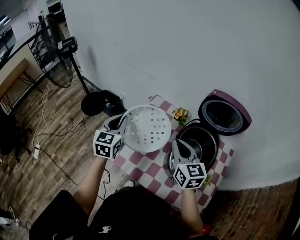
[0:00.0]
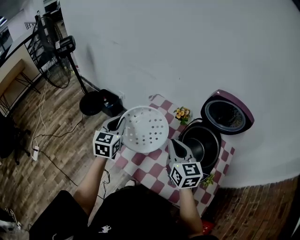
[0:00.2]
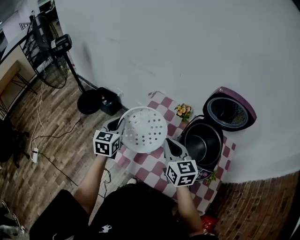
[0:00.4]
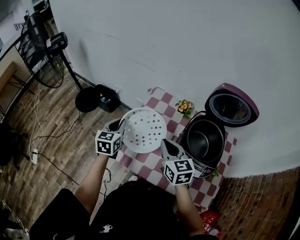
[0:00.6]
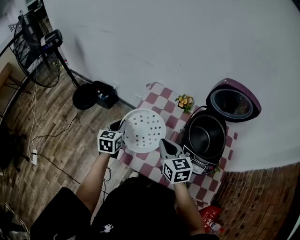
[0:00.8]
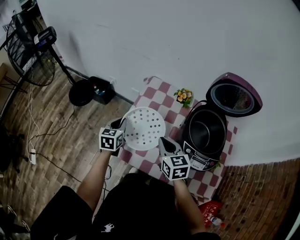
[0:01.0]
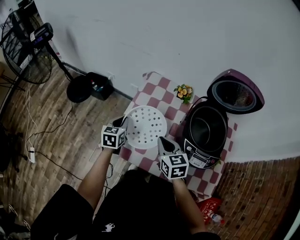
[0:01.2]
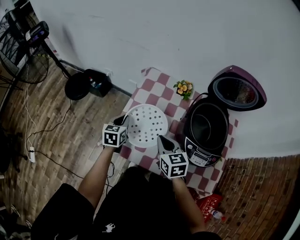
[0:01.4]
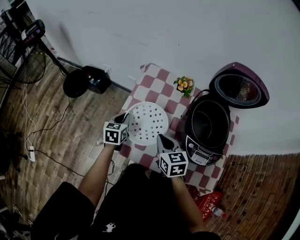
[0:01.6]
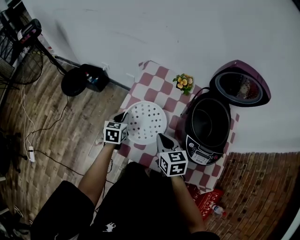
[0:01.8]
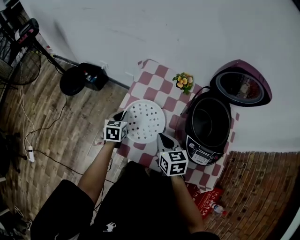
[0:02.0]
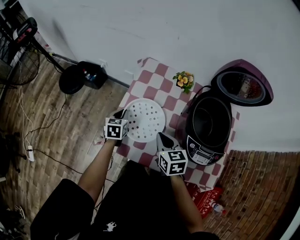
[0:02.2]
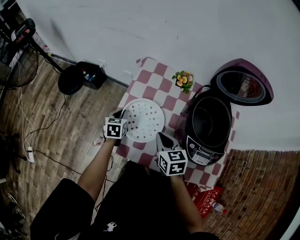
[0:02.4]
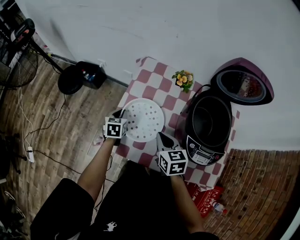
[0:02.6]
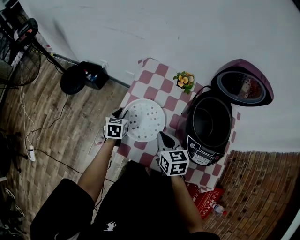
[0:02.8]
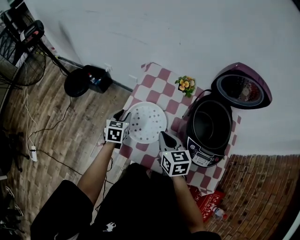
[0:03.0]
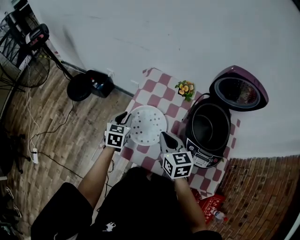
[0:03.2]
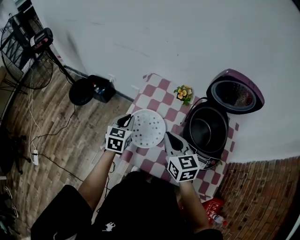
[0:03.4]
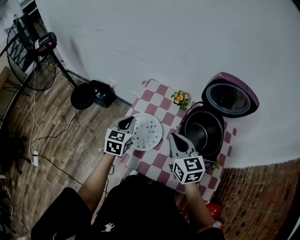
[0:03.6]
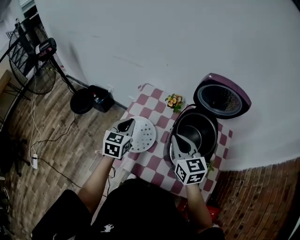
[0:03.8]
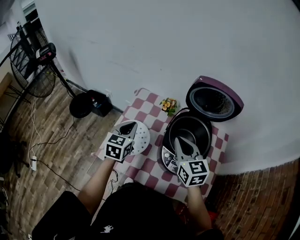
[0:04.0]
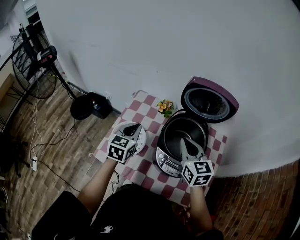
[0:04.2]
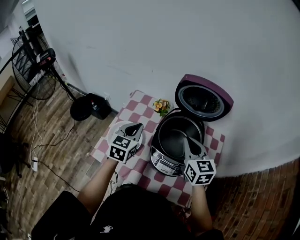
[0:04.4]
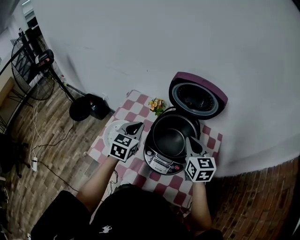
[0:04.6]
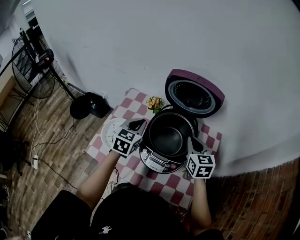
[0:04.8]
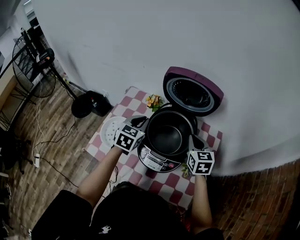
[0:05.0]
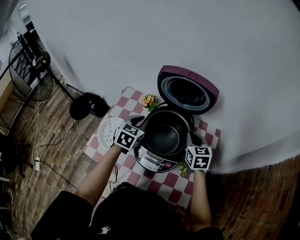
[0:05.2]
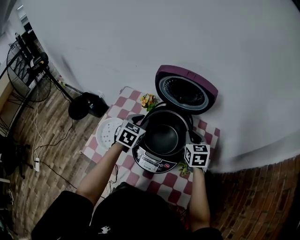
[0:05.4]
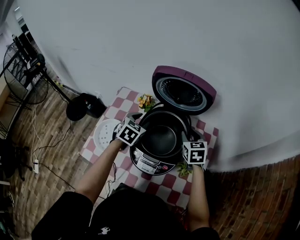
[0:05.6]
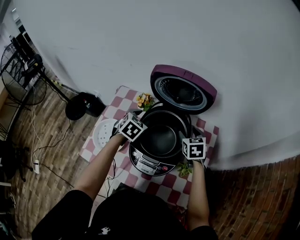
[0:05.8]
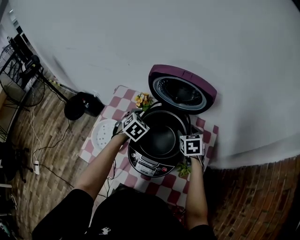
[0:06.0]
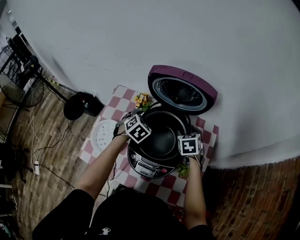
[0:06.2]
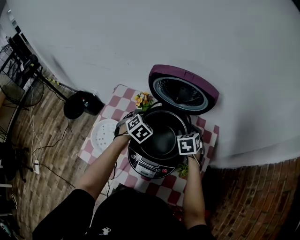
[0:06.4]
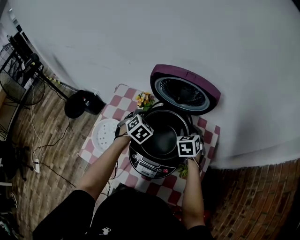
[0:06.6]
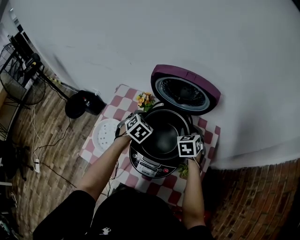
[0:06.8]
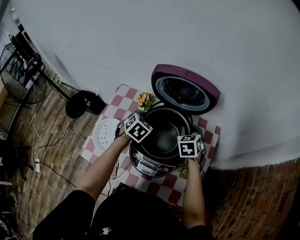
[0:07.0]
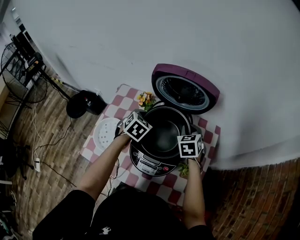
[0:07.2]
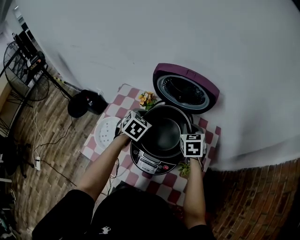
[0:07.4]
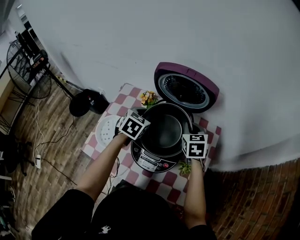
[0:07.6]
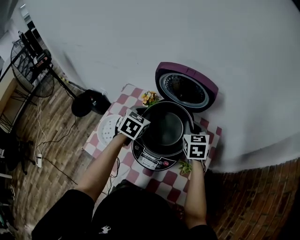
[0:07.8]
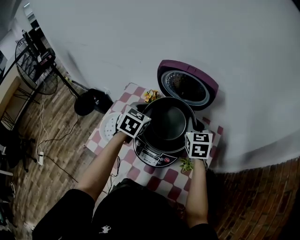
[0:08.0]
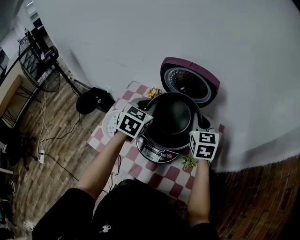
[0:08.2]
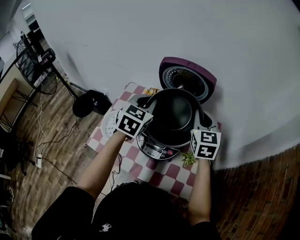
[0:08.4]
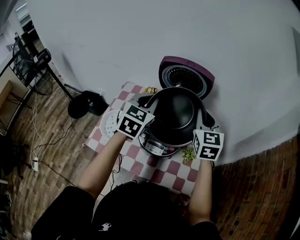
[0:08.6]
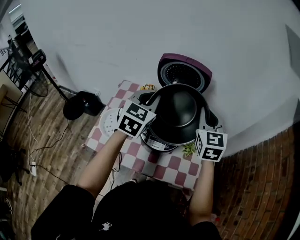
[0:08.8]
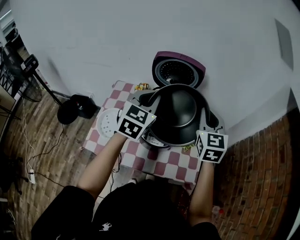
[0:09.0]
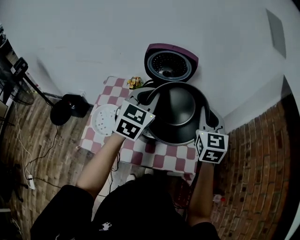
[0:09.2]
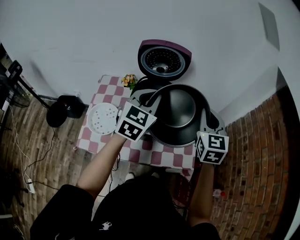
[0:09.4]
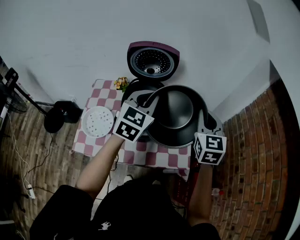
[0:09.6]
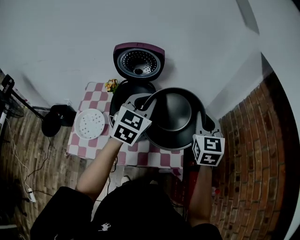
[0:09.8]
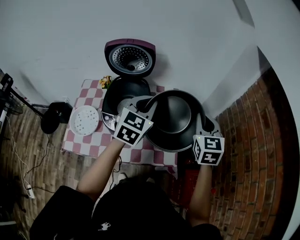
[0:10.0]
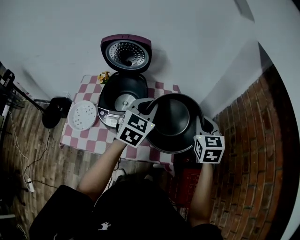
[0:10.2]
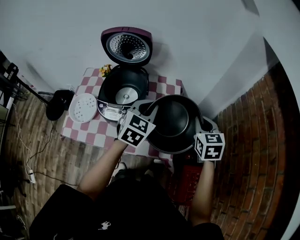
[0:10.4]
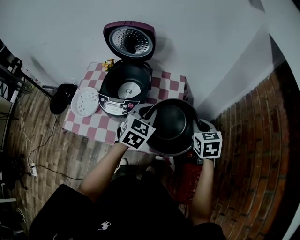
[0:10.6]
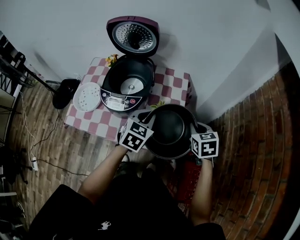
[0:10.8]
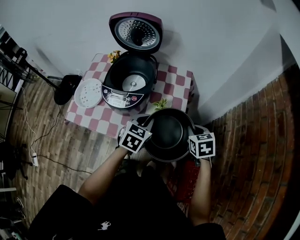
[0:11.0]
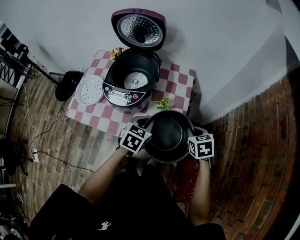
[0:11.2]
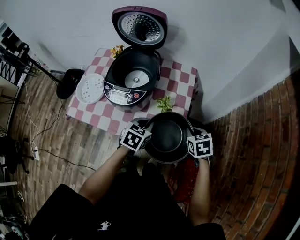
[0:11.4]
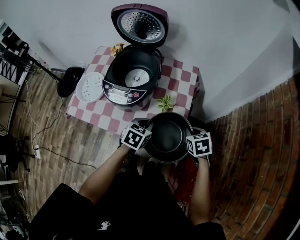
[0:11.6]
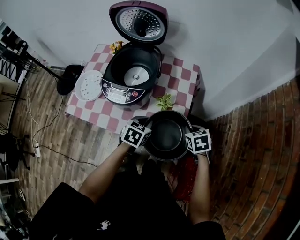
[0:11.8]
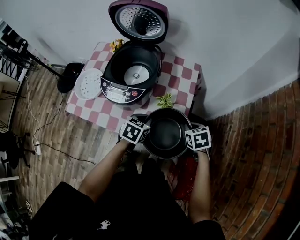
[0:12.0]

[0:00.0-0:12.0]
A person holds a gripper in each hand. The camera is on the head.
0:00.0 to 0:01.6: The left gripper shifts some 25 cm downward, and changes its angle by about 30 degrees. The right gripper shifts about 20 cm downward and to the left, and turns by some 20 degrees.
0:01.6 to 0:03.0: The left gripper opens up.
0:03.0 to 0:04.4: Both grippers travel together to the right and upward, some 30 cm. The left gripper swivels approximately 20 degrees, and closes up.
0:04.4 to 0:06.0: The left gripper moves to the right, downward and forward, approximately 20 cm, swivels approximately 40 degrees, and opens up. The right gripper shifts approximately 20 cm downward, to the right and forward, turns by about 30 degrees, and opens up.
0:06.0 to 0:07.6: The two grippers go roughly 5 cm upward. The right gripper closes its fingers, while the left gripper closes up.
0:07.6 to 0:09.0: Both grippers travel together upward and backward, approximately 25 cm. The right gripper changes its angle by some 30 degrees. Meanwhile the left gripper turns by approximately 30 degrees.
0:09.0 to 0:10.4: The two grippers go approximately 25 cm to the right and downward. The right gripper turns by roughly 20 degrees.
0:10.4 to 0:12.0: Both grippers move downward, about 20 cm. The right gripper rotates about 30 degrees. Meanwhile the left gripper turns by approximately 40 degrees.

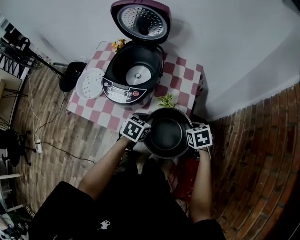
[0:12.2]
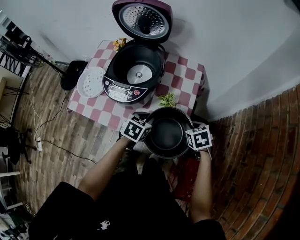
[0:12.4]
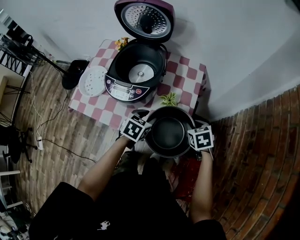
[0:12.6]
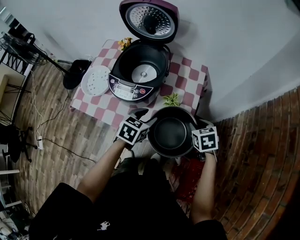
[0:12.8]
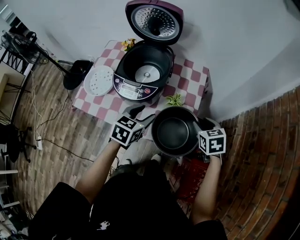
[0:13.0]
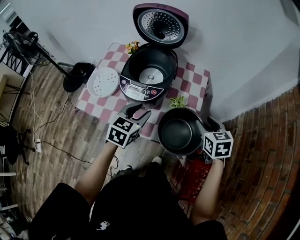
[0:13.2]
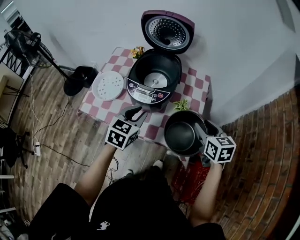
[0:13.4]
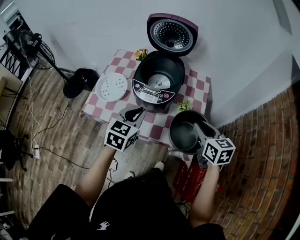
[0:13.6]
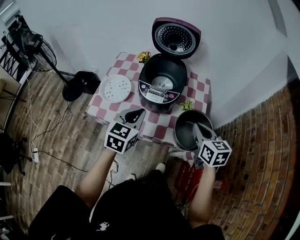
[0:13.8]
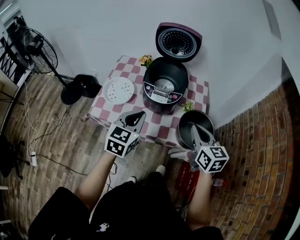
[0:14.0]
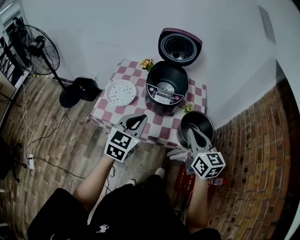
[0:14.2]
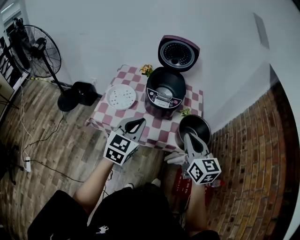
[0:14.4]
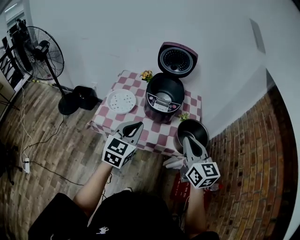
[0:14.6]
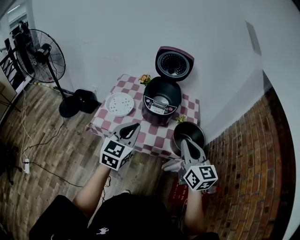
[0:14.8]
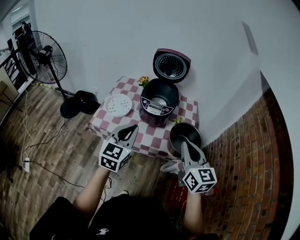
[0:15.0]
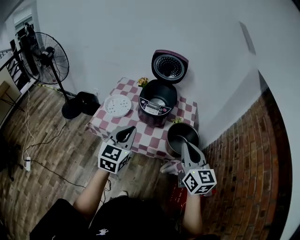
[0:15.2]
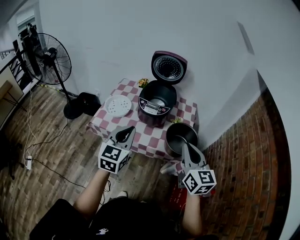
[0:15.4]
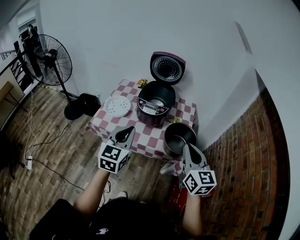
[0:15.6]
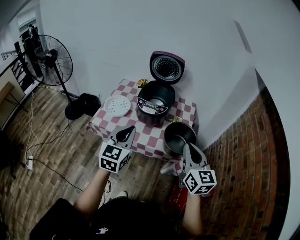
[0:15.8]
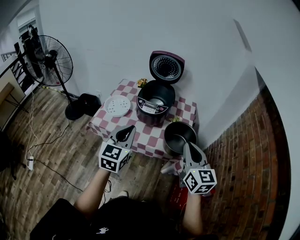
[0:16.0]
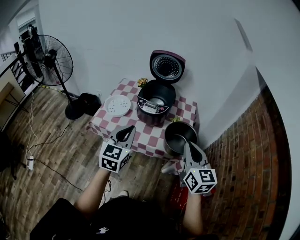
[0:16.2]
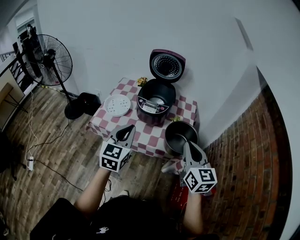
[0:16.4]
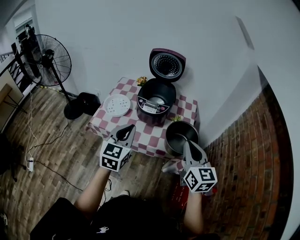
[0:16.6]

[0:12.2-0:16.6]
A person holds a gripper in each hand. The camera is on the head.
0:12.2 to 0:13.6: The grippers both shift upward and to the left by about 20 cm. The right gripper points its fingers roughly 30 degrees further upward, and opens up. The left gripper changes its angle by about 30 degrees, and opens, then closes once more.
0:13.6 to 0:15.2: Both grippers move backward and upward, roughly 20 cm. The right gripper rotates some 30 degrees, and closes.
0:15.2 to 0:16.6: The grippers move only a little.

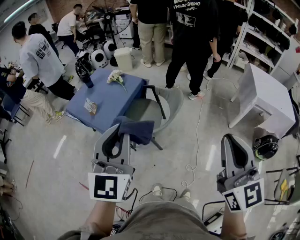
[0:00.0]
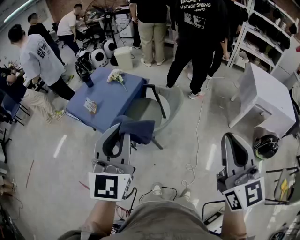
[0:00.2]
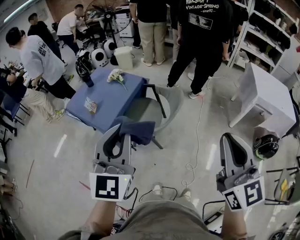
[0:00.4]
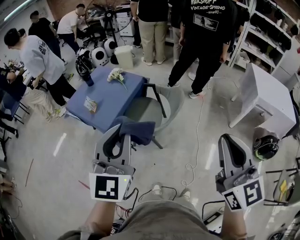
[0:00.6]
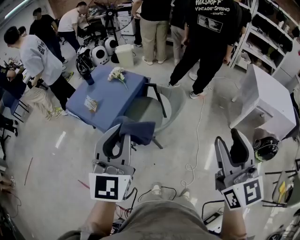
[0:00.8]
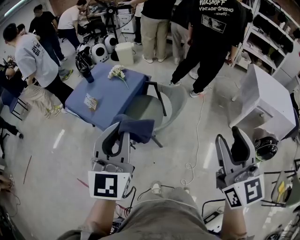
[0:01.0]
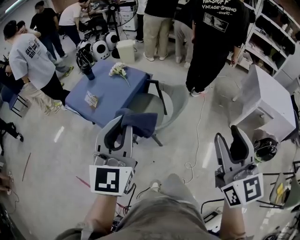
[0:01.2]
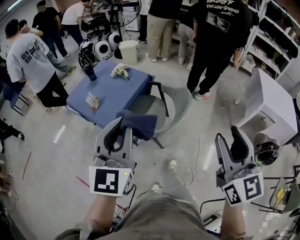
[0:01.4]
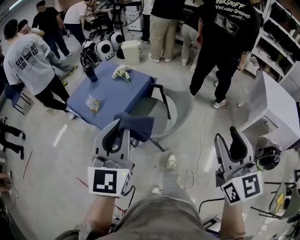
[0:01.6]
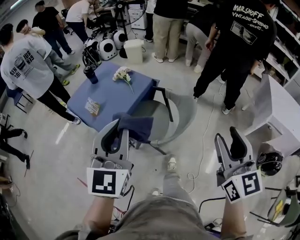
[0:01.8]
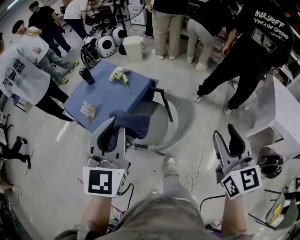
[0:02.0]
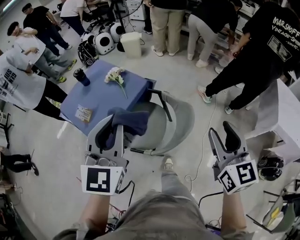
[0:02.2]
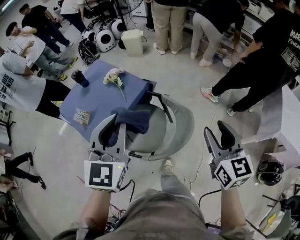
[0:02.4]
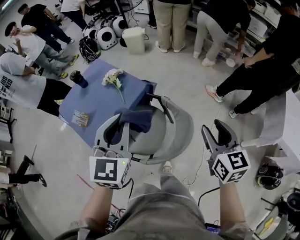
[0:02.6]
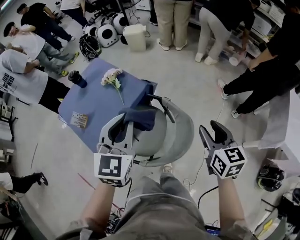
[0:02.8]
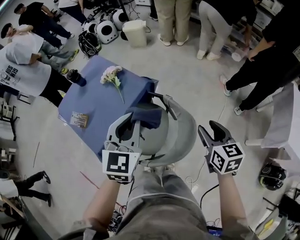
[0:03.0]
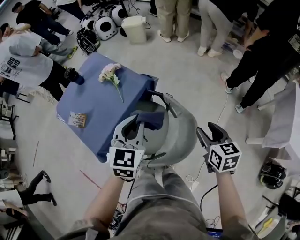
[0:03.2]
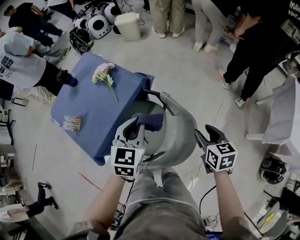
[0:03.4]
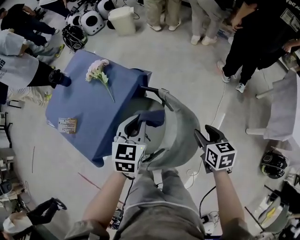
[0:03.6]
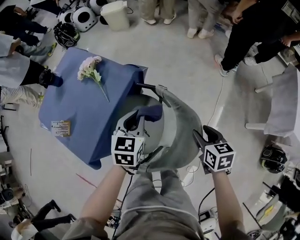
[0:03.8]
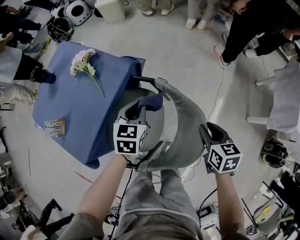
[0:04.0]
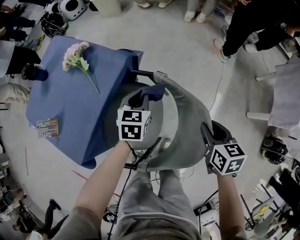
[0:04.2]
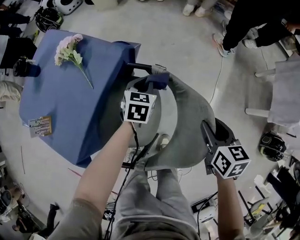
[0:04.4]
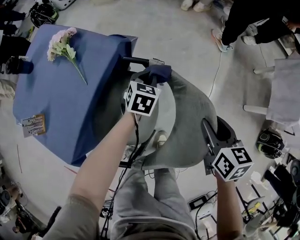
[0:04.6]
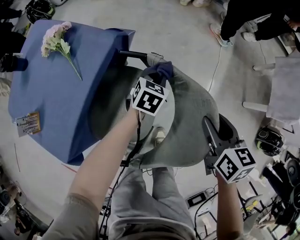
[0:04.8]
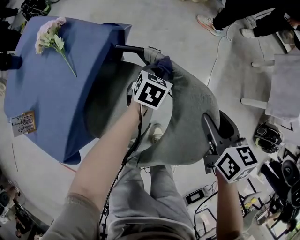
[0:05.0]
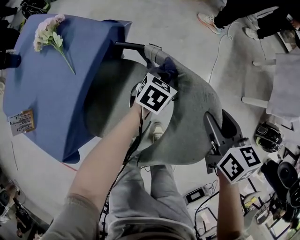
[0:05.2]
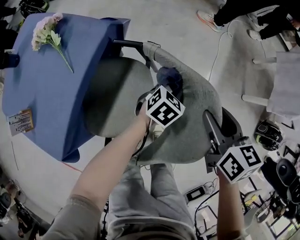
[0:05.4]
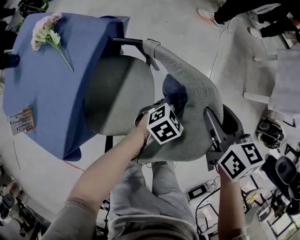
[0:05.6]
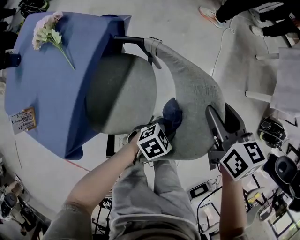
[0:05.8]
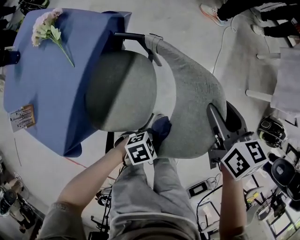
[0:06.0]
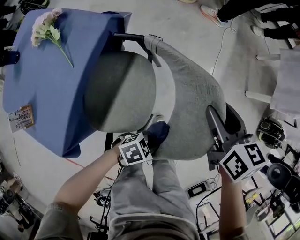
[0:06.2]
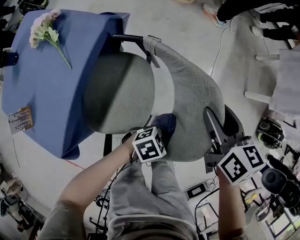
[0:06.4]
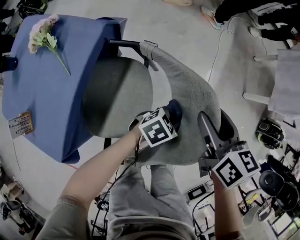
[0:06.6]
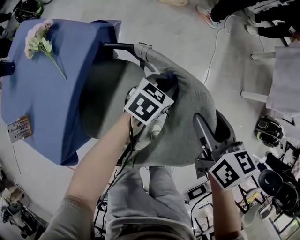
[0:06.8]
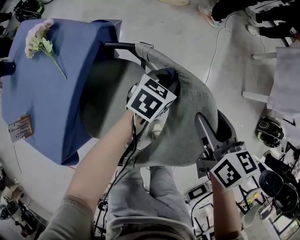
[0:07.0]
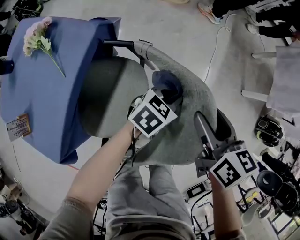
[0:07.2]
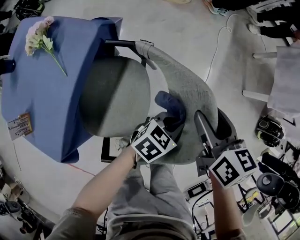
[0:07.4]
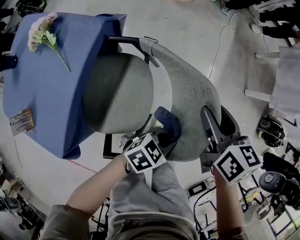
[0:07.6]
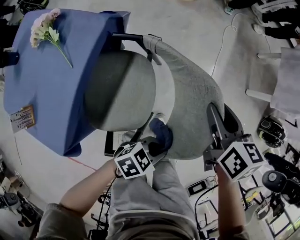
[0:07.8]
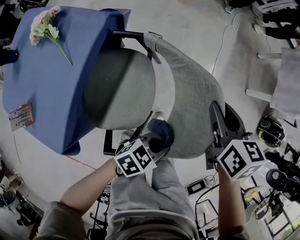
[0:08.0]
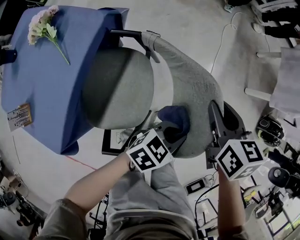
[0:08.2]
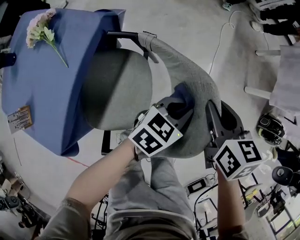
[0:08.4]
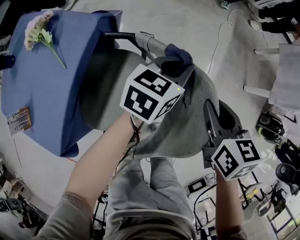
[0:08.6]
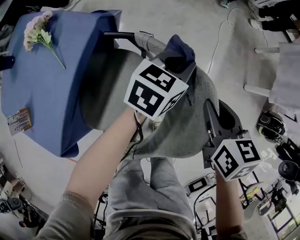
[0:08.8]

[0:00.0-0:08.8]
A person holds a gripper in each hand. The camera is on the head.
0:00.0 to 0:01.4: Both grippers move forward, about 5 cm. The right gripper opens its fingers.
0:01.4 to 0:03.0: The two grippers travel together, forward, roughly 40 cm. The left gripper goes some 20 cm downward, and turns by some 20 degrees, while the right gripper travels downward by about 30 cm, and changes its angle by roughly 40 degrees.
0:03.0 to 0:04.4: The left gripper goes approximately 40 cm downward, and rotates roughly 30 degrees. Meanwhile the right gripper moves downward, roughly 20 cm, and changes its angle by about 20 degrees.
0:04.4 to 0:05.8: The left gripper changes place by about 30 cm, and rotates roughly 60 degrees.
0:07.4 to 0:08.8: The right gripper closes its fingers. Meanwhile the left gripper moves forward, to the left and upward, some 20 cm, and swivels some 20 degrees.
